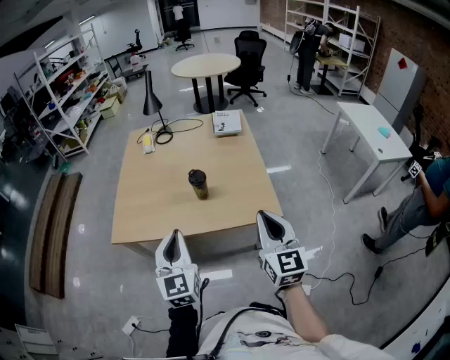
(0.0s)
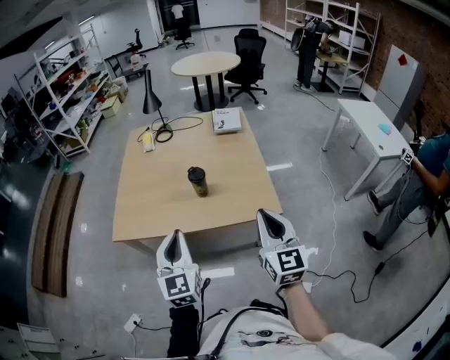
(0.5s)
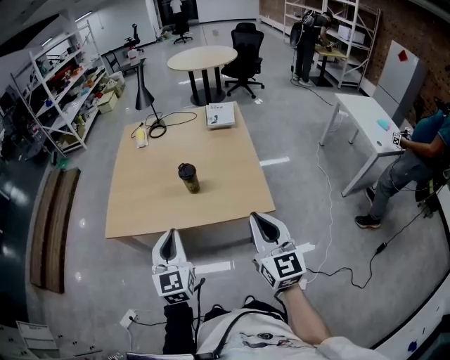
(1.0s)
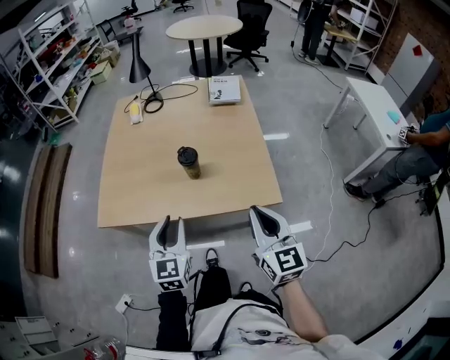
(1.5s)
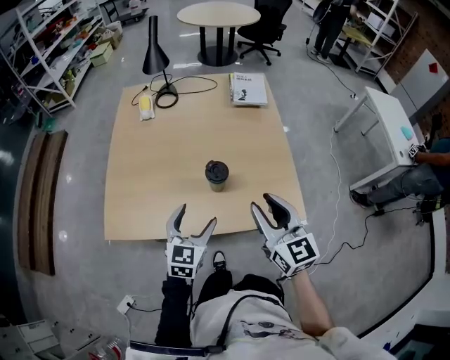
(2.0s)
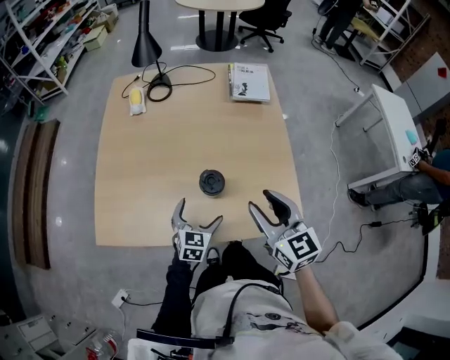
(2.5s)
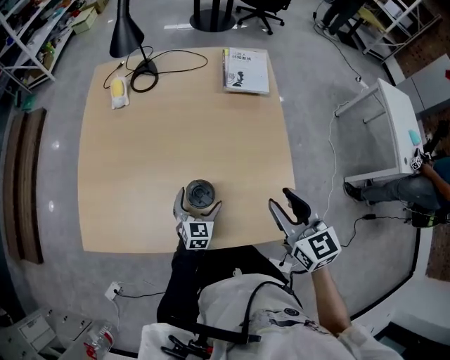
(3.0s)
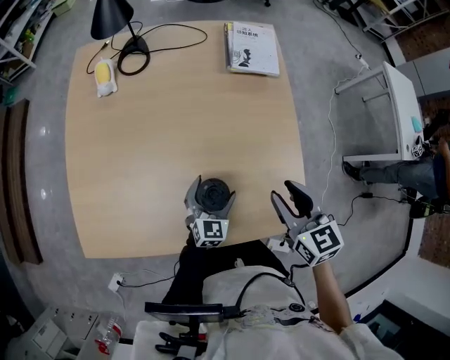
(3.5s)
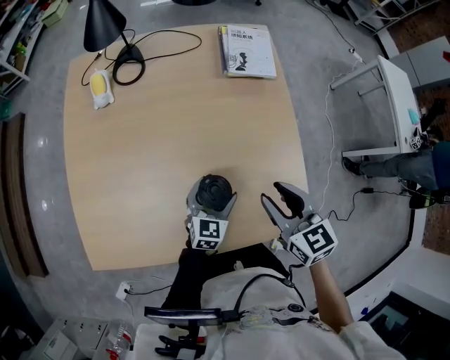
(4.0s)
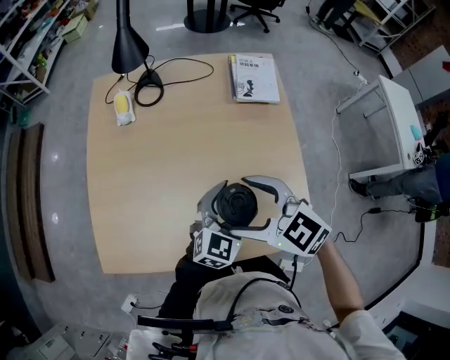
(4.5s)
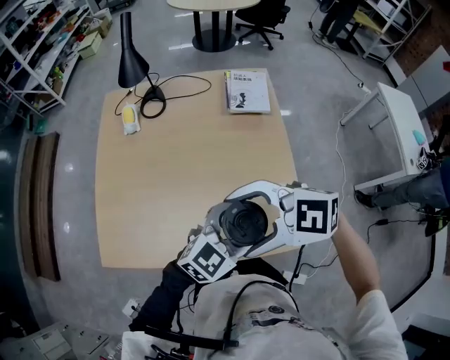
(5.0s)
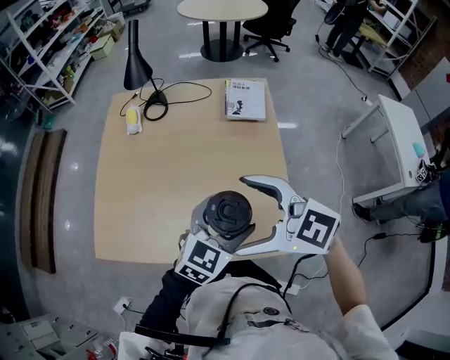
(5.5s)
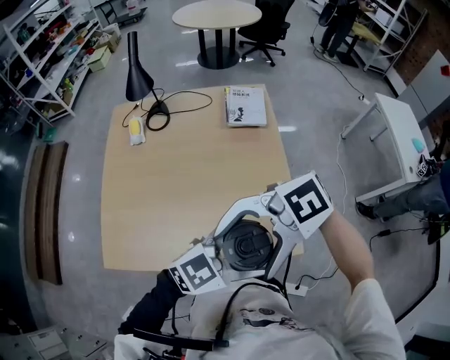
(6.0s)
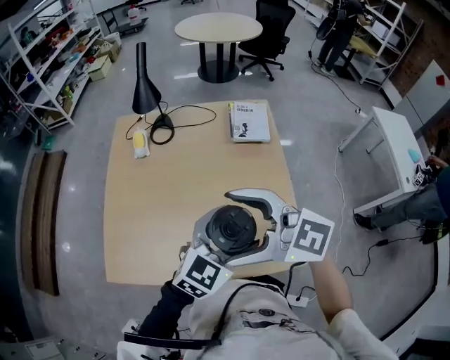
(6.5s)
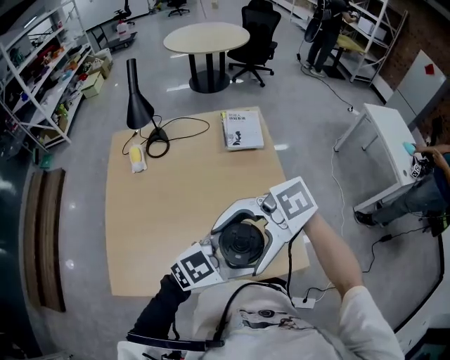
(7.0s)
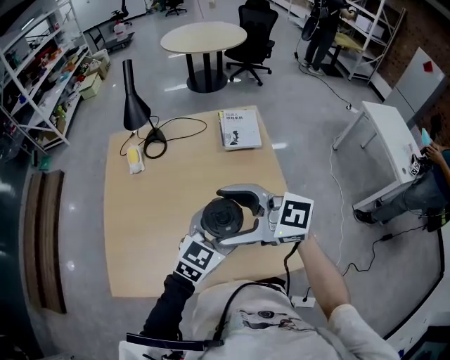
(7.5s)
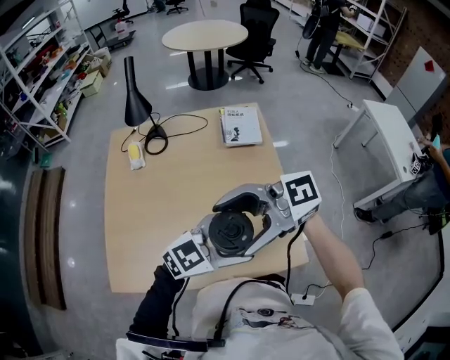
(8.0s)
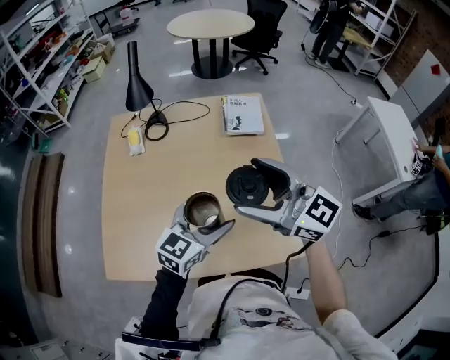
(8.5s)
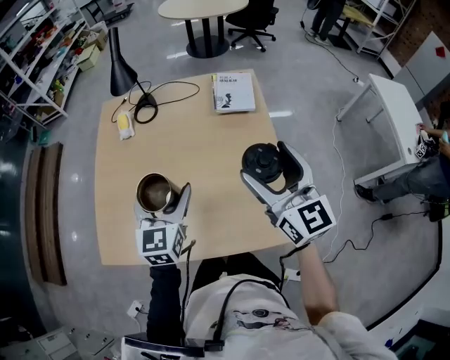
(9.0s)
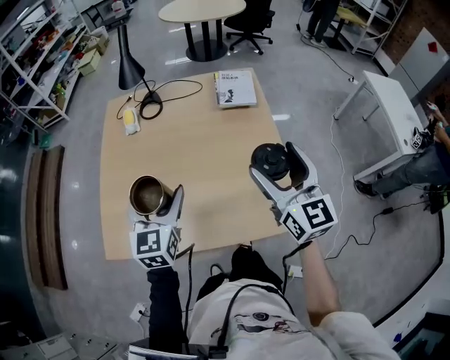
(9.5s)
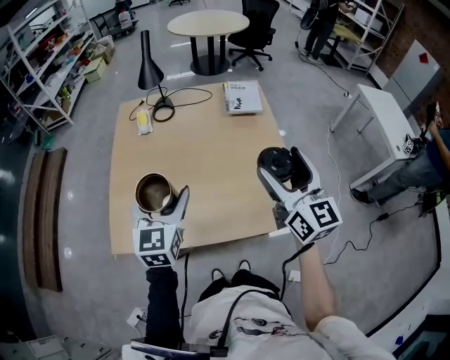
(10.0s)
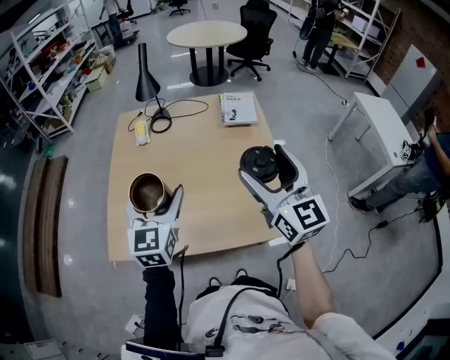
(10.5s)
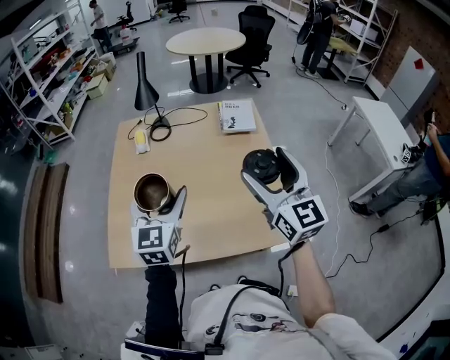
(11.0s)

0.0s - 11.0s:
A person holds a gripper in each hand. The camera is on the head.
0.0s - 2.0s: The left gripper is displaced forward and downward by some 25 cm, swivels roughly 30 degrees, and opens its fingers, while the right gripper heads forward and to the left, covering roughly 20 cm.
2.0s - 3.5s: The left gripper shifts about 30 cm downward, forward and to the right. The right gripper goes about 20 cm forward and downward, and changes its angle by about 20 degrees.
3.5s - 5.5s: The right gripper heads upward, covering roughly 20 cm, swivels about 60 degrees, and opens up. The left gripper is displaced upward by roughly 30 cm.
5.5s - 7.5s: The right gripper shifts by some 10 cm.
7.5s - 9.0s: The left gripper shifts by about 10 cm, and swivels roughly 40 degrees; the right gripper changes place by approximately 15 cm, and swivels about 50 degrees.
9.0s - 11.0s: The left gripper moves upward, to the left and backward, about 15 cm, while the right gripper travels backward, upward and to the left by about 10 cm.

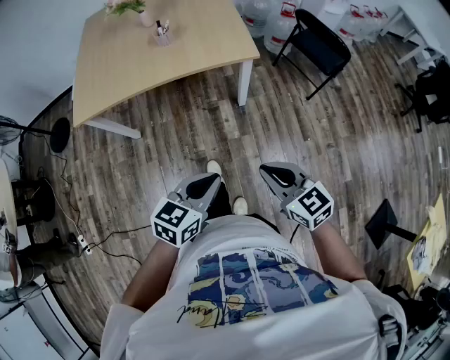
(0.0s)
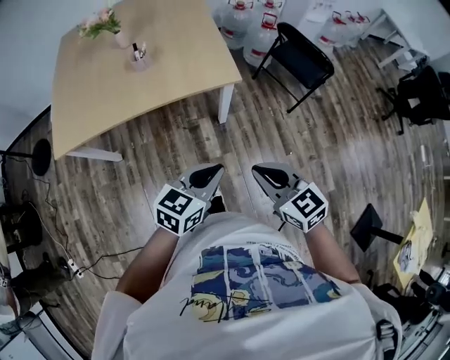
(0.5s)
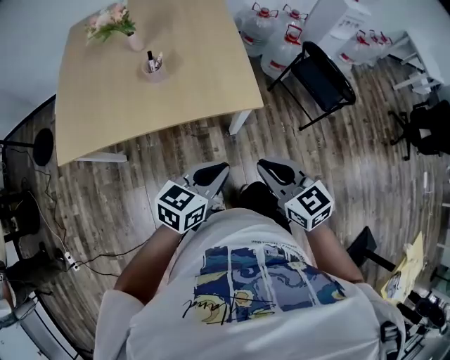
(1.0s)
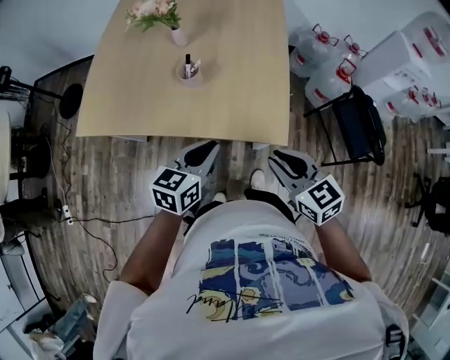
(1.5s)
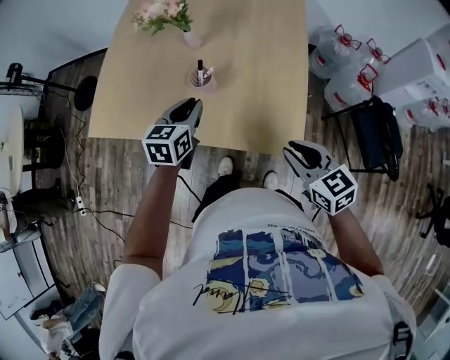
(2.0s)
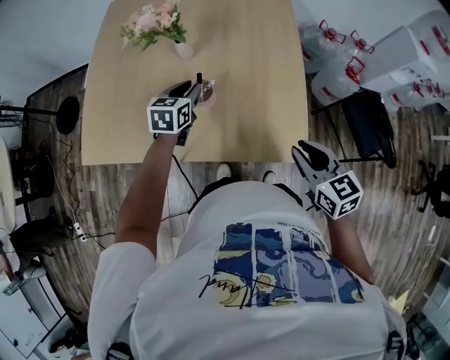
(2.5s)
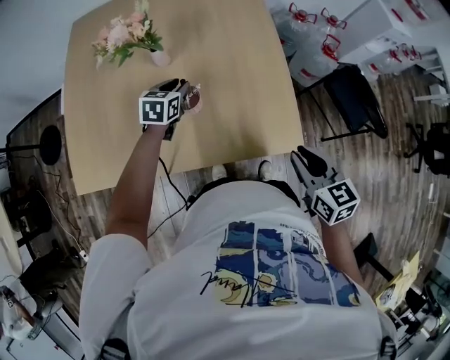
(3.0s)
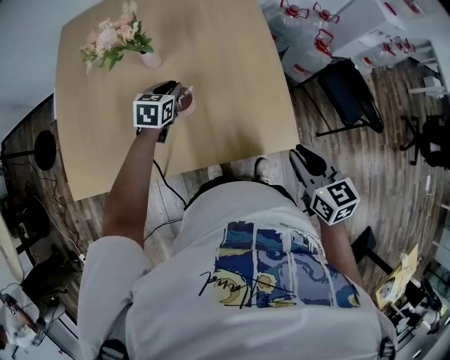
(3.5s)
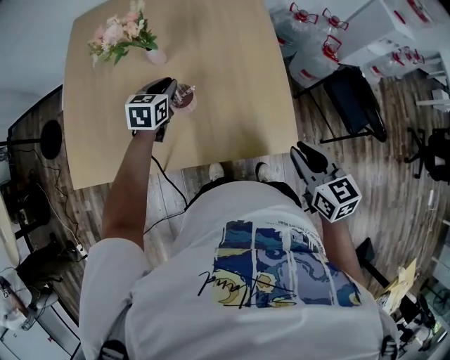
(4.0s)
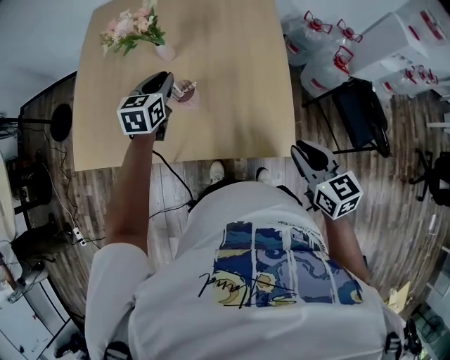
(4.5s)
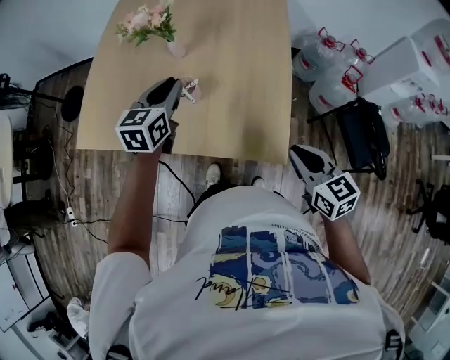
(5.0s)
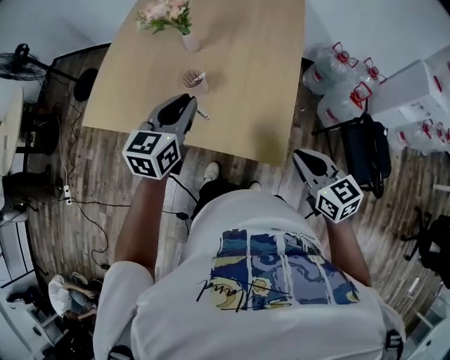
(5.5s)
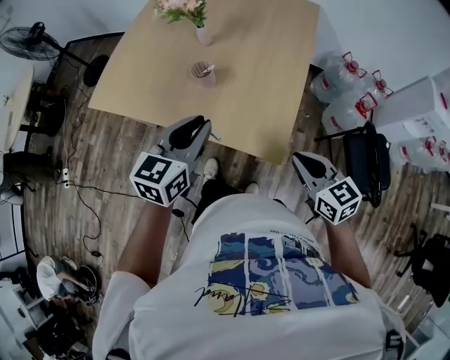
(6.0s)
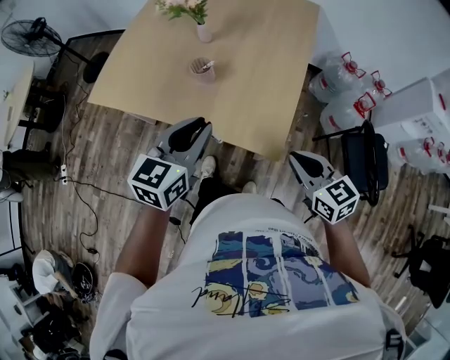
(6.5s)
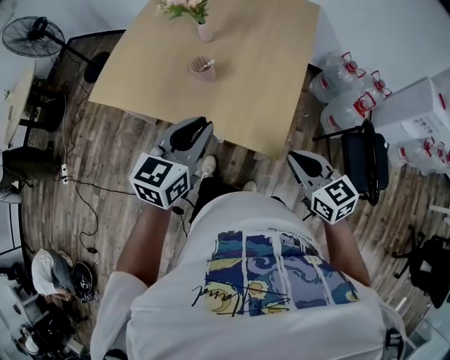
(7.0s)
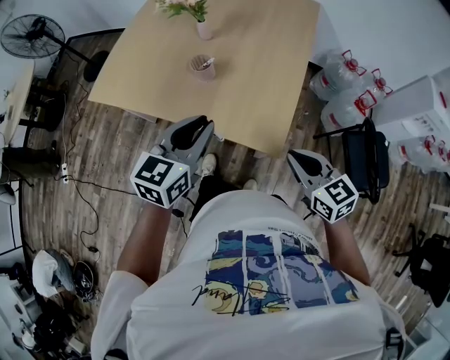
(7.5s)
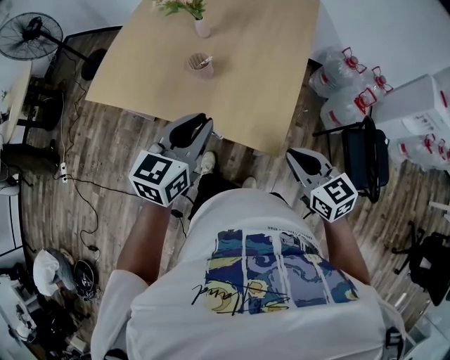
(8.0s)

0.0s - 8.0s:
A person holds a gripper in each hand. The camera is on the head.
0.0s - 2.0s: Both grippers are carried approximately 60 cm. The left gripper swivels roughly 40 degrees.
2.0s - 4.0s: The left gripper shifts by about 20 cm, while the right gripper rotates some 30 degrees.
4.0s - 6.0s: The left gripper moves some 35 cm, and rotates about 20 degrees; the right gripper shifts by approximately 10 cm, and rotates roughly 30 degrees.
6.0s - 8.0s: The grippers move only a little.

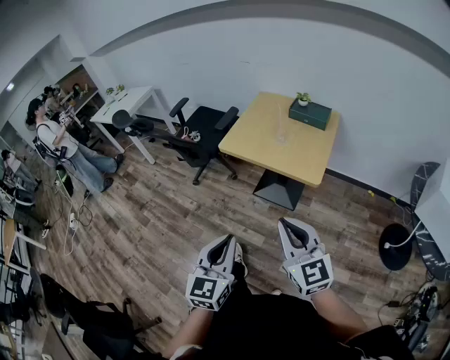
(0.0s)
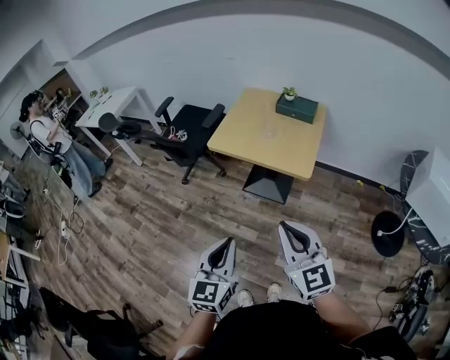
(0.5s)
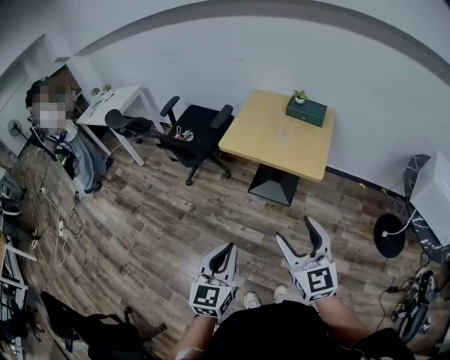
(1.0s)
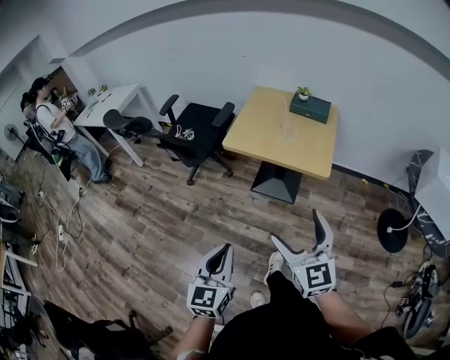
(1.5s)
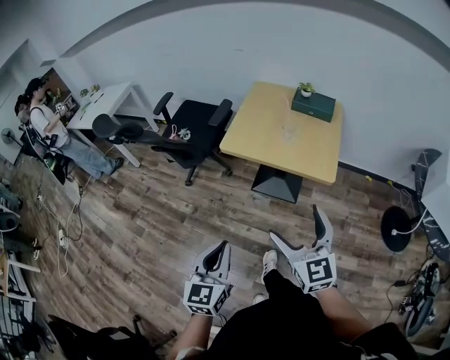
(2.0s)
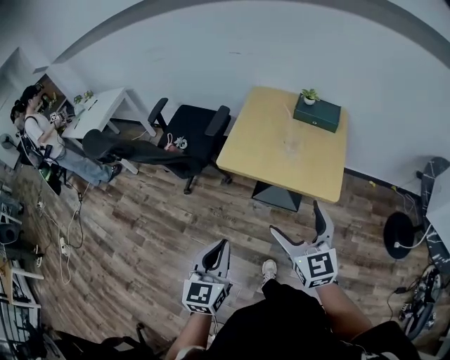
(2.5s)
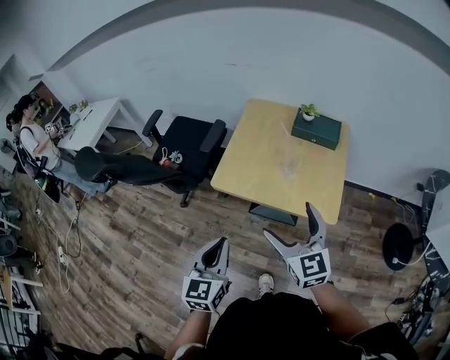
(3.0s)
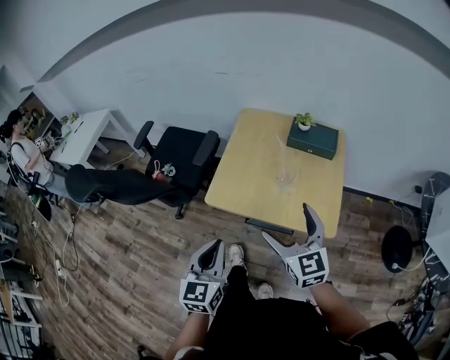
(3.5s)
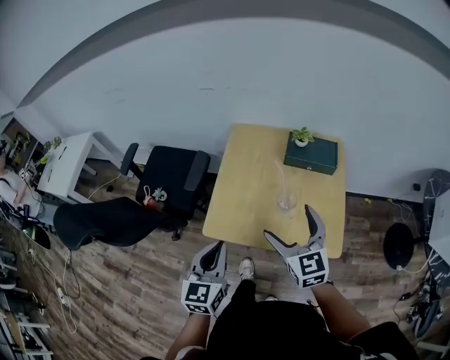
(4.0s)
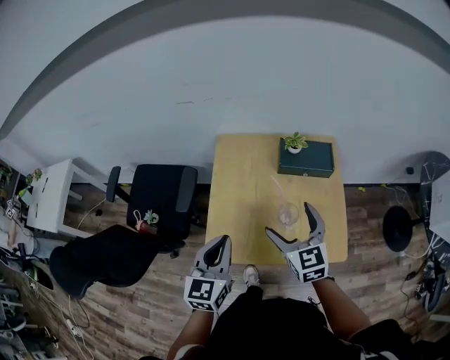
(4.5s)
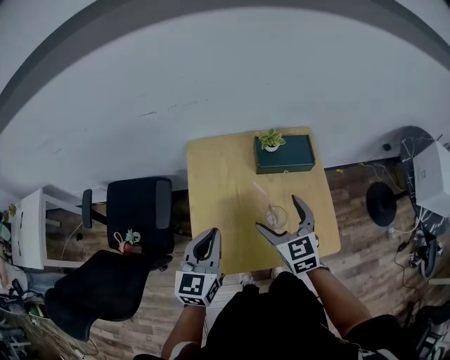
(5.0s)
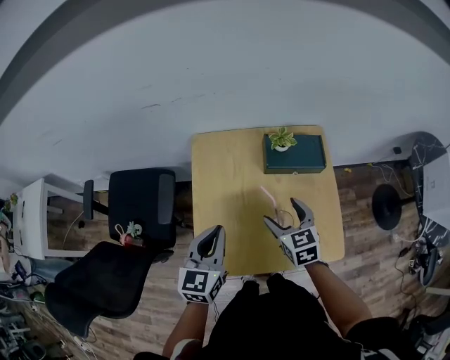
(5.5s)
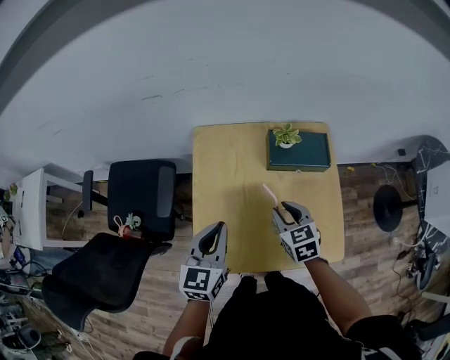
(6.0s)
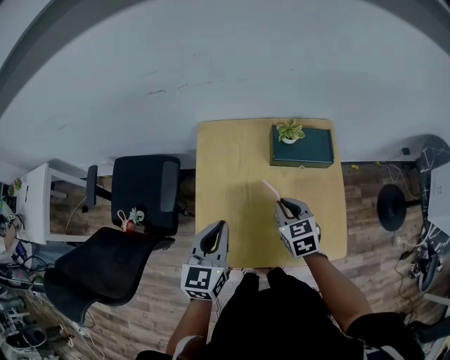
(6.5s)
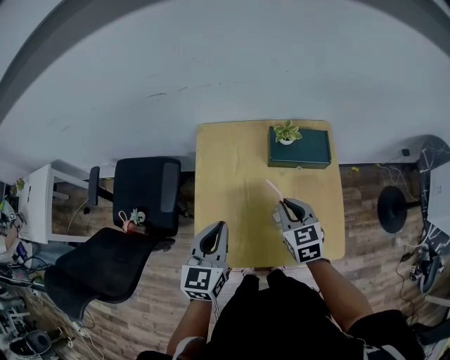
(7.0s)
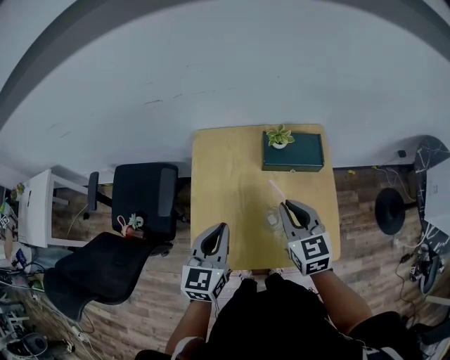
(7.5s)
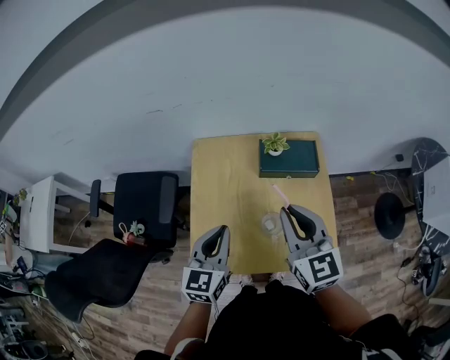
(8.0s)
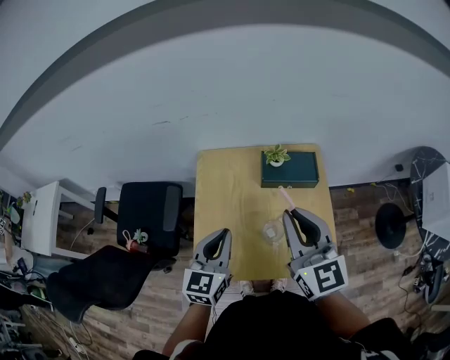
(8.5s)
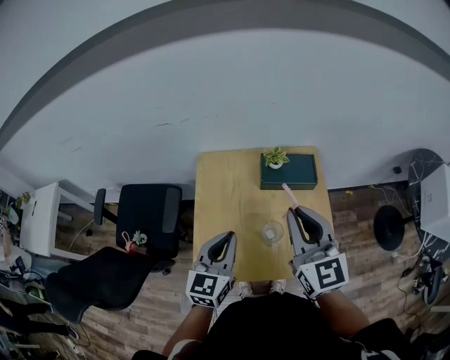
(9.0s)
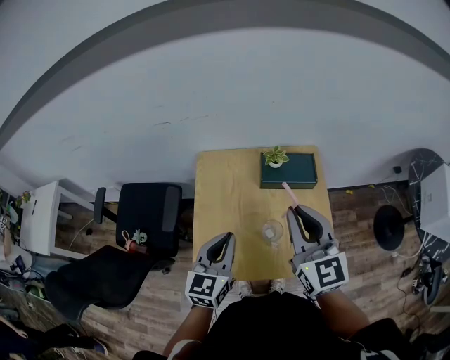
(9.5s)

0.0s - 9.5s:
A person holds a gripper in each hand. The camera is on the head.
0.0s - 2.0s: The left gripper heads to the left and forward, covering some 15 cm. Meanwhile the right gripper goes about 15 cm forward and to the left, and opens its fingers.
2.0s - 4.0s: The pair of grippers is taken forward, some 40 cm.
4.0s - 5.5s: The right gripper goes roughly 20 cm forward and downward, and rotates about 30 degrees. Meanwhile the left gripper goes some 25 cm forward.
5.5s - 7.5s: The right gripper is displaced upward by approximately 10 cm, and closes up.
7.5s - 9.5s: The right gripper heads upward, covering some 15 cm, and changes its angle by approximately 20 degrees.
